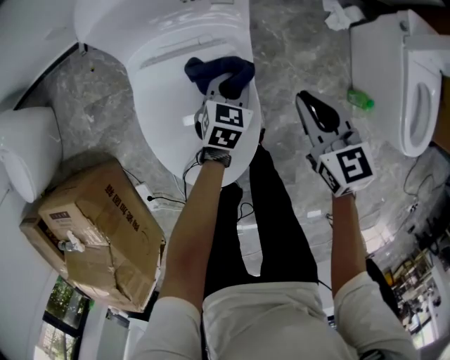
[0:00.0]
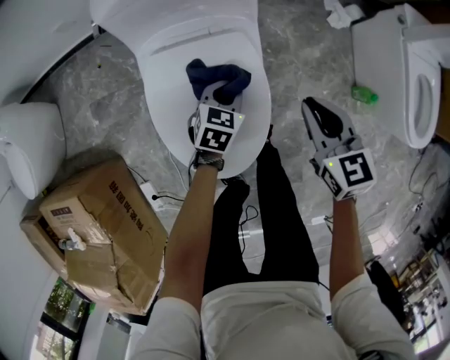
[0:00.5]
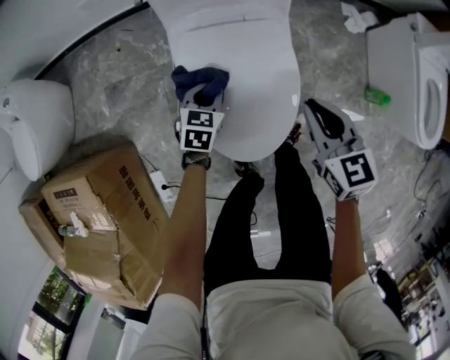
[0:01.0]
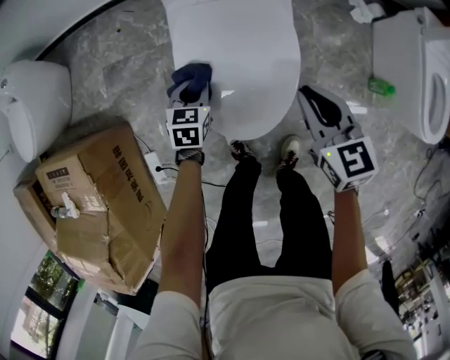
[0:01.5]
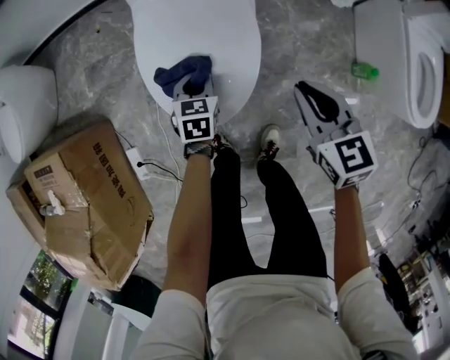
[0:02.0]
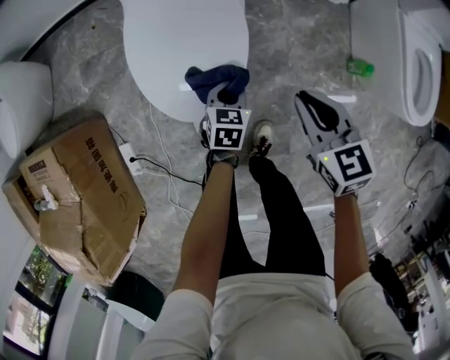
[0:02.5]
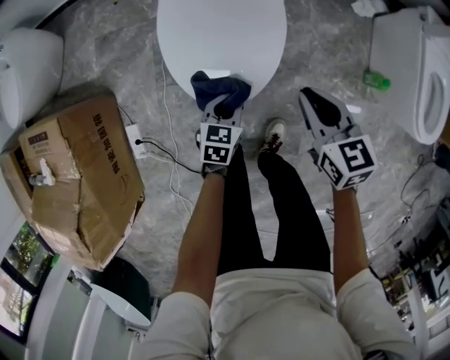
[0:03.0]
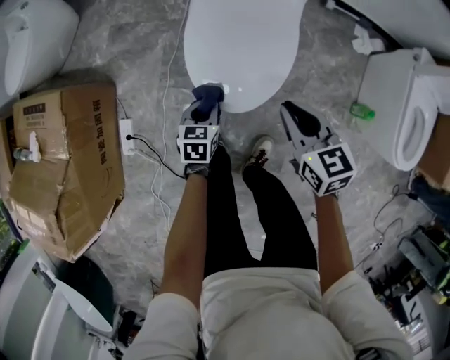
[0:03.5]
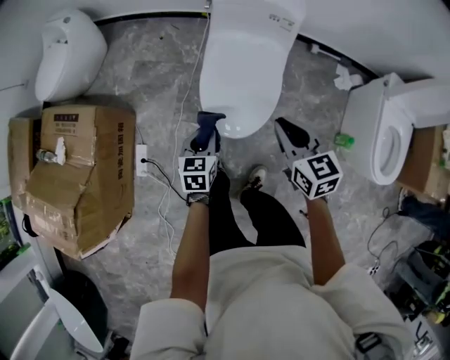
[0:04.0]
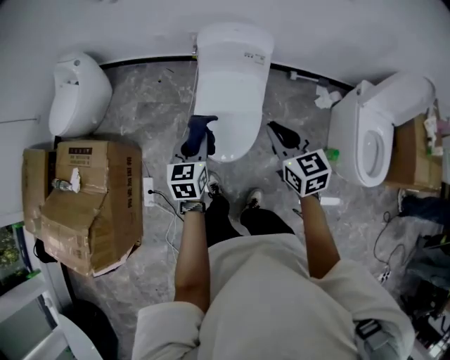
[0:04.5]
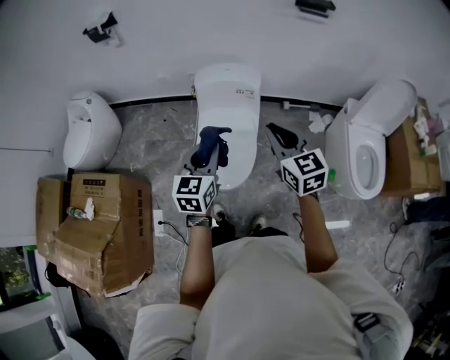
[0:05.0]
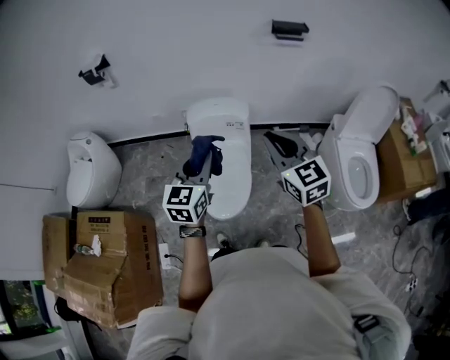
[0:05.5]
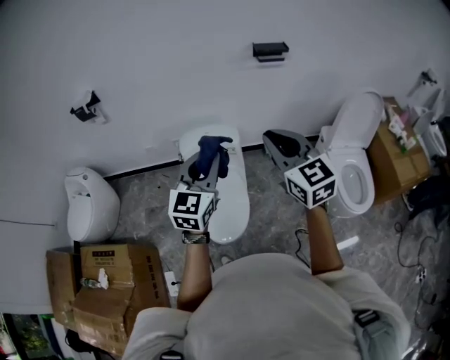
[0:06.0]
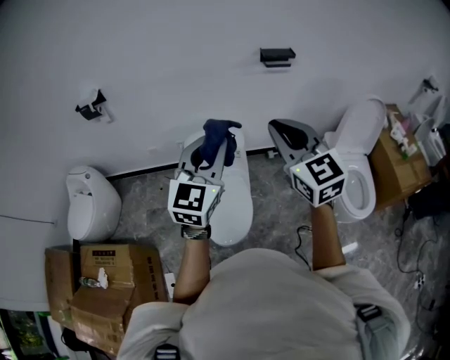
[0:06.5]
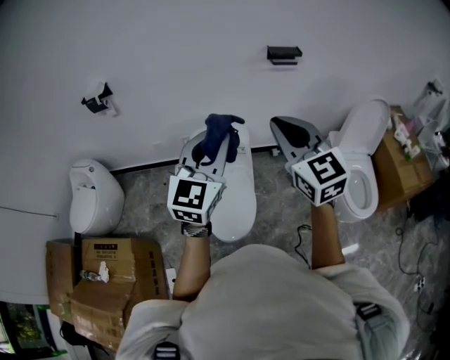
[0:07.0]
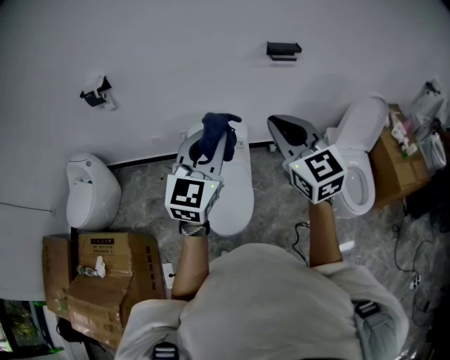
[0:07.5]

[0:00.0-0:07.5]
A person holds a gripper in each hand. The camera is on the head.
0:00.0 to 0:02.0: The right gripper travels backward by about 15 cm. Meanwhile the left gripper is displaced backward and to the left by about 20 cm, and turns by about 20 degrees.
0:02.0 to 0:04.0: The right gripper goes some 20 cm upward and to the left. The left gripper travels upward, backward and to the left by some 25 cm.
0:04.0 to 0:05.5: Both grippers travel together upward, roughly 35 cm. The right gripper swivels some 30 degrees; the left gripper angles its fingers upward, by roughly 30 degrees.
0:05.5 to 0:07.5: Both grippers move upward, roughly 15 cm. The left gripper rotates about 20 degrees.

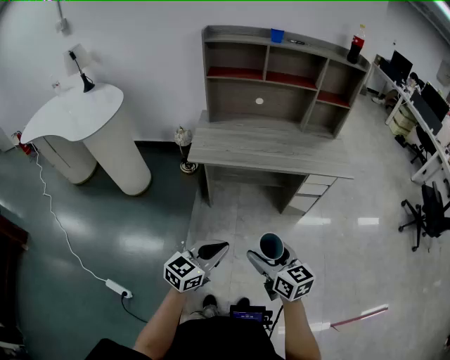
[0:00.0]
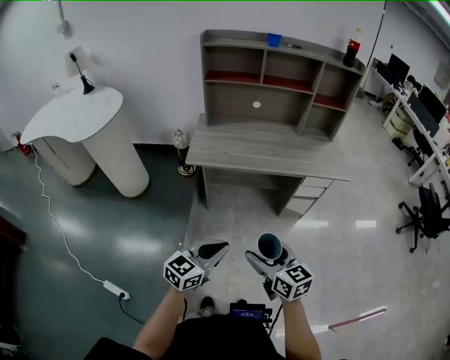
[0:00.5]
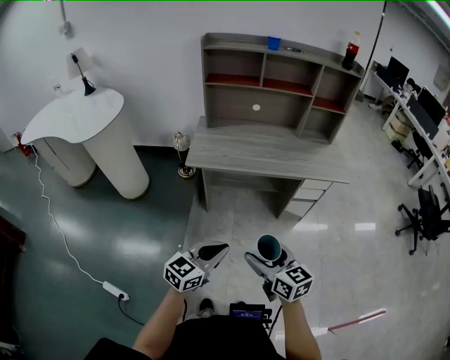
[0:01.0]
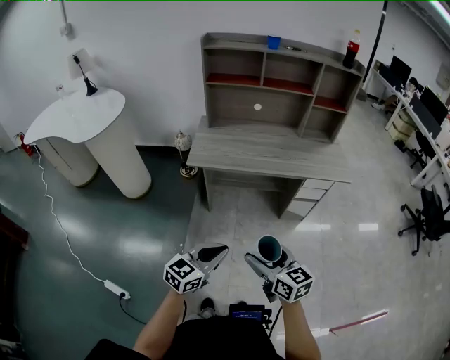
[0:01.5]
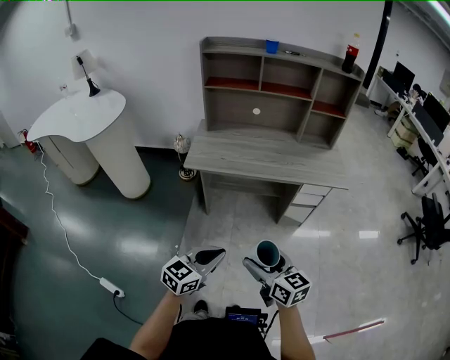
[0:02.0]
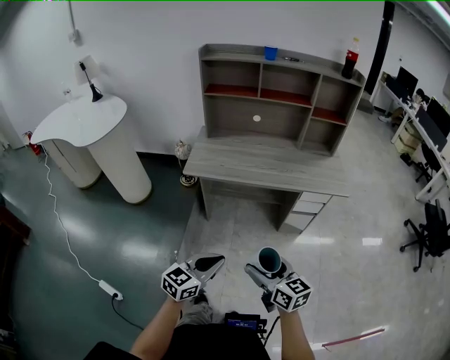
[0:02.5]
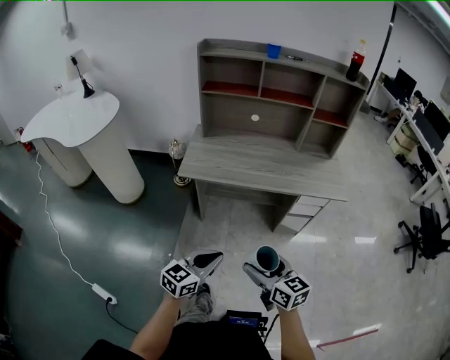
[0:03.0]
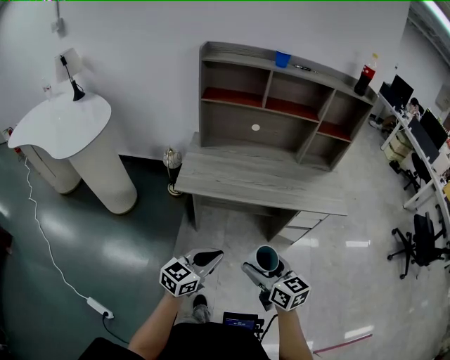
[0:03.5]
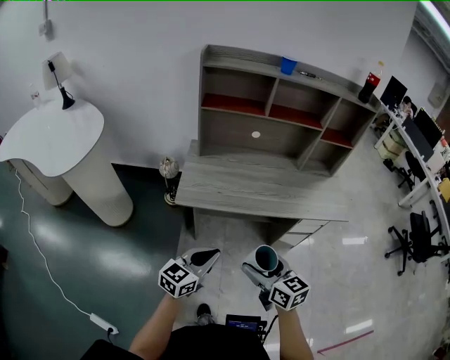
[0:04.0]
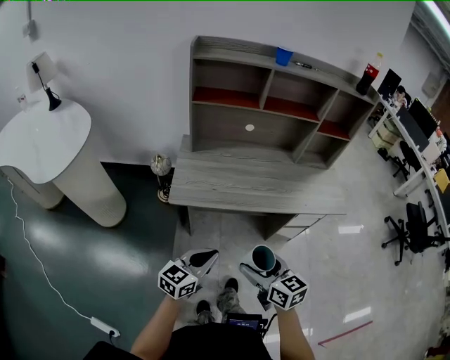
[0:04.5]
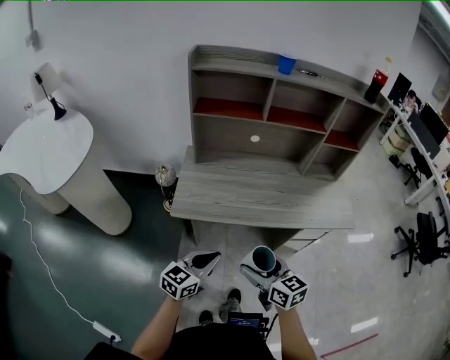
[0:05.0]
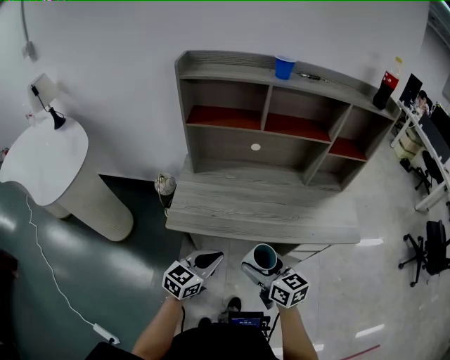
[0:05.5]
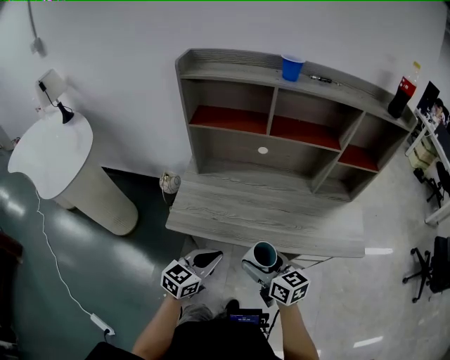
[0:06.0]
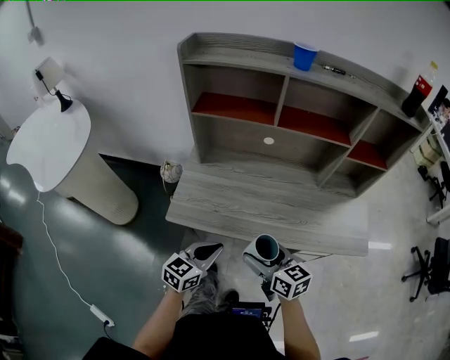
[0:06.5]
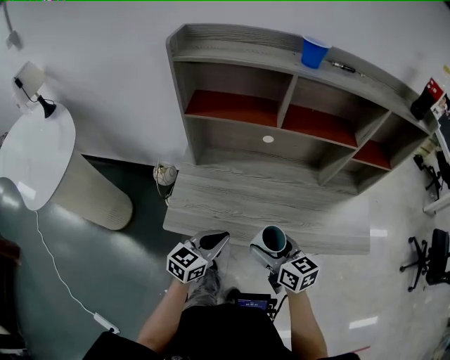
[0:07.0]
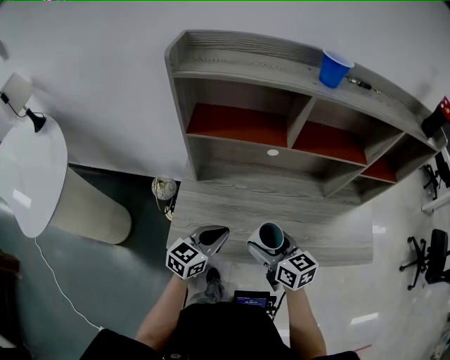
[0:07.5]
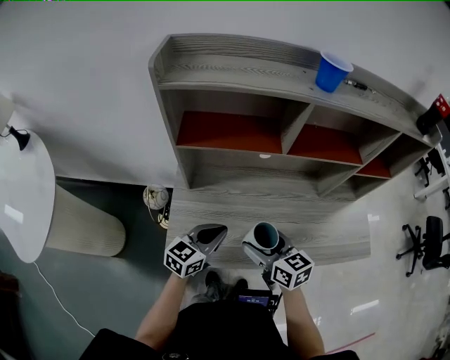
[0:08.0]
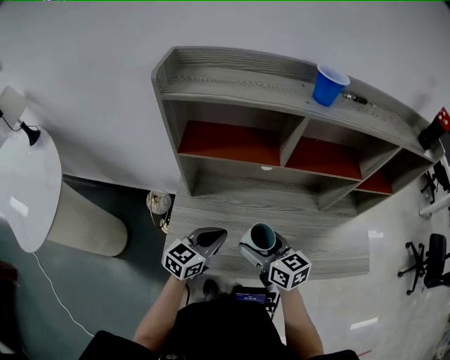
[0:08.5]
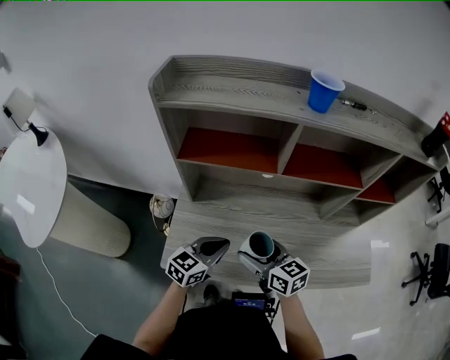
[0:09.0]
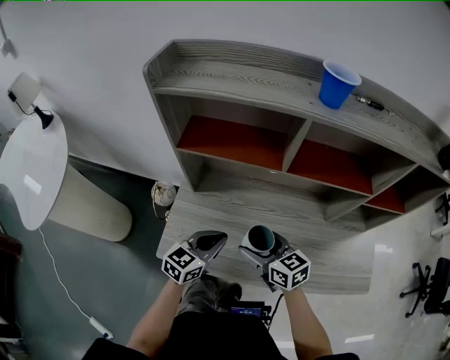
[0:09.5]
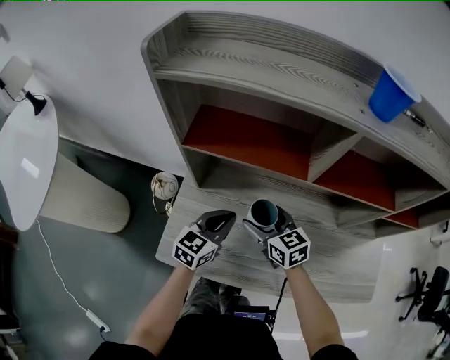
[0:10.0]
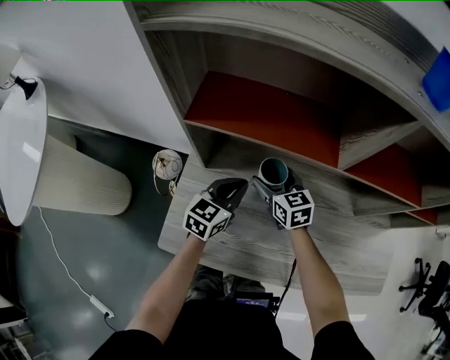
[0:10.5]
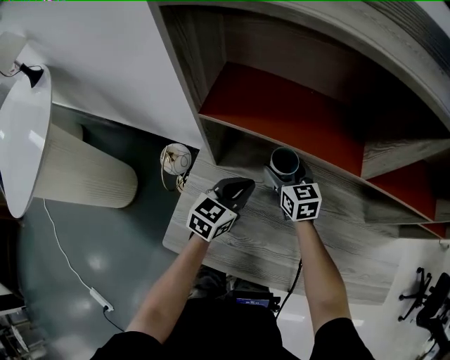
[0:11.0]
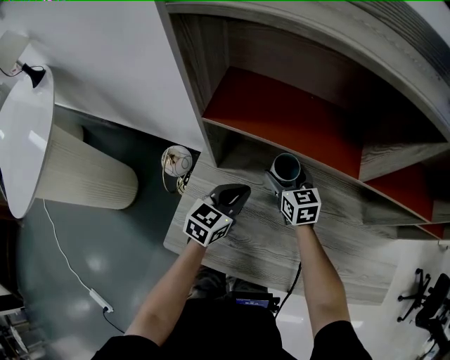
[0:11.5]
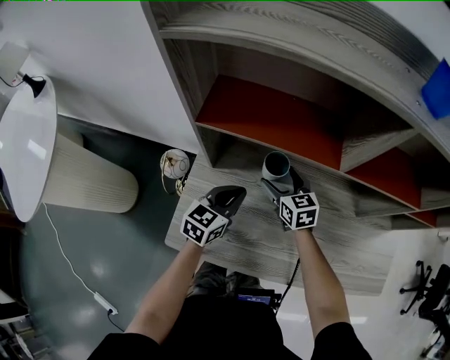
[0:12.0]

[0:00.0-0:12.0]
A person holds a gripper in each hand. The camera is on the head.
0:00.0 to 0:02.0: The grippers stay close to where they were, moving slightly.
0:02.0 to 0:04.0: Both grippers move forward and to the left, some 25 cm.
0:04.0 to 0:06.0: Both grippers travel together forward, approximately 20 cm.
0:06.0 to 0:08.0: Both grippers travel together forward, approximately 20 cm.
0:08.0 to 0:10.0: The right gripper travels forward and downward by roughly 15 cm, while the left gripper heads forward, covering approximately 10 cm.
0:10.0 to 0:12.0: The right gripper travels forward and downward by approximately 10 cm.

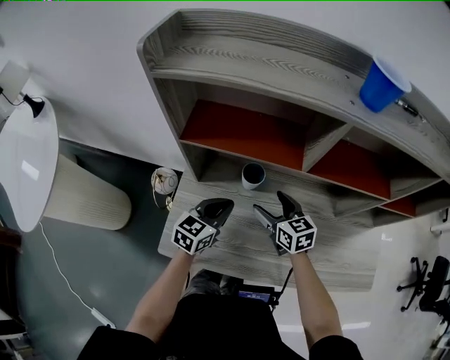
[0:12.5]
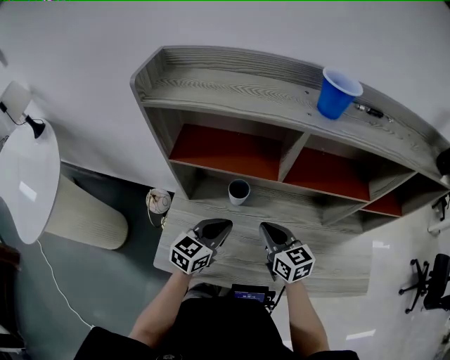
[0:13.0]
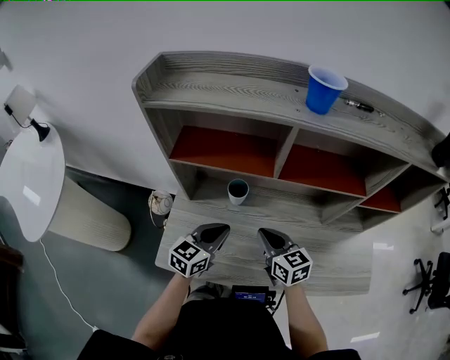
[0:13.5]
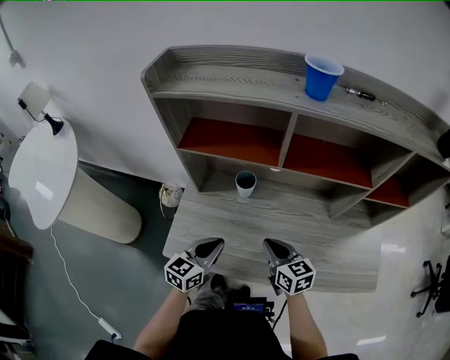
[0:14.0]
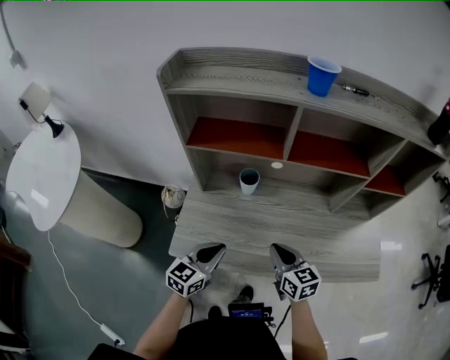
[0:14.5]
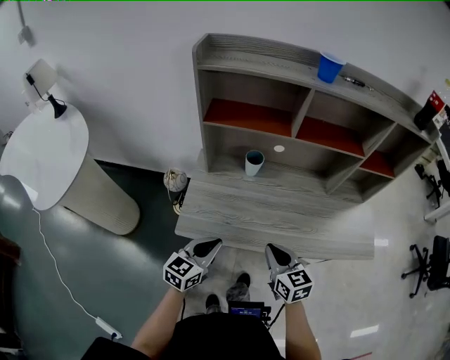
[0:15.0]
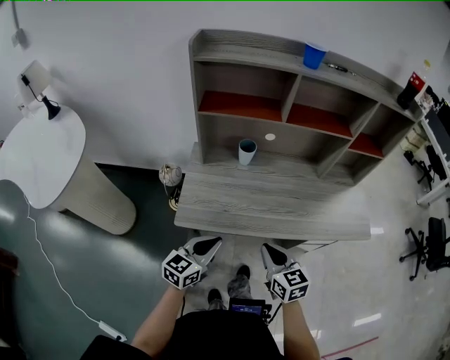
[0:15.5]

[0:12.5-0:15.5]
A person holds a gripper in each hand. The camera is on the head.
0:12.5 to 0:14.0: Both grippers move backward, some 15 cm. The right gripper closes up.
0:14.0 to 0:15.5: Both grippers travel together backward, about 20 cm.

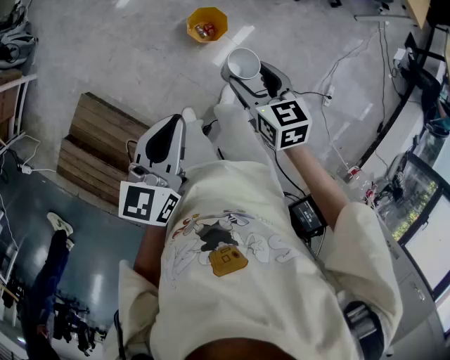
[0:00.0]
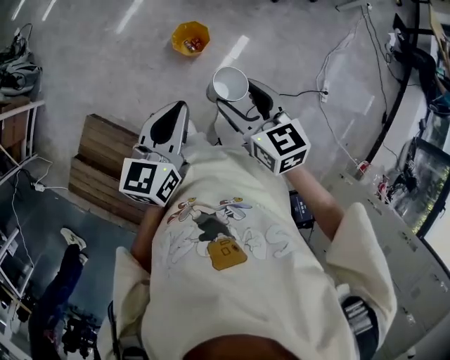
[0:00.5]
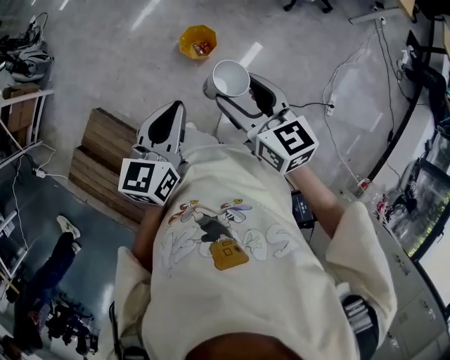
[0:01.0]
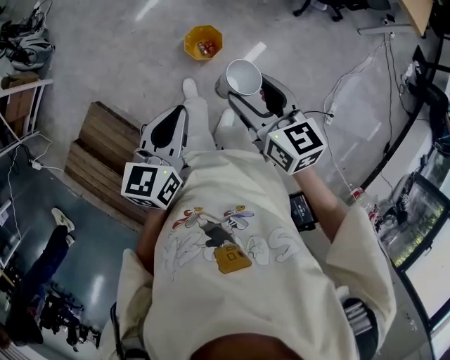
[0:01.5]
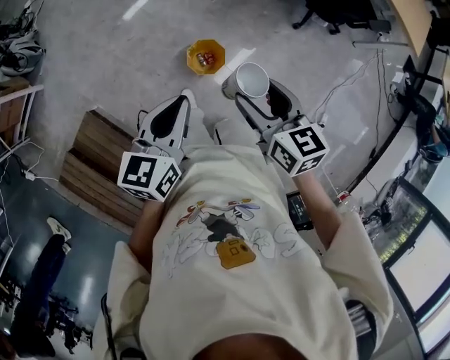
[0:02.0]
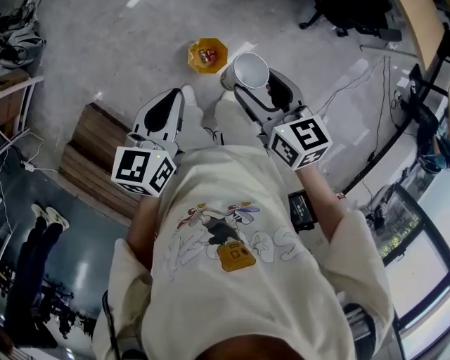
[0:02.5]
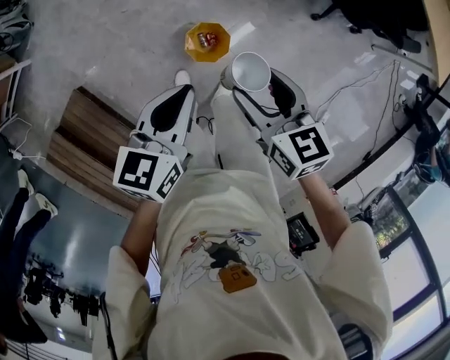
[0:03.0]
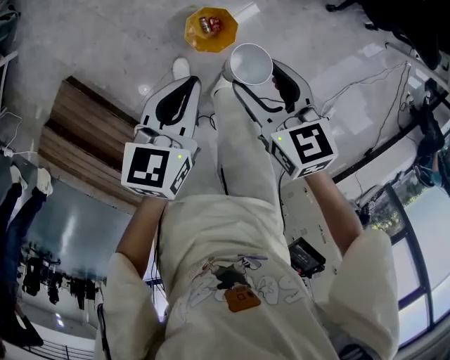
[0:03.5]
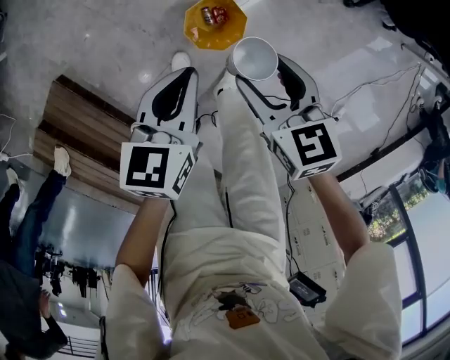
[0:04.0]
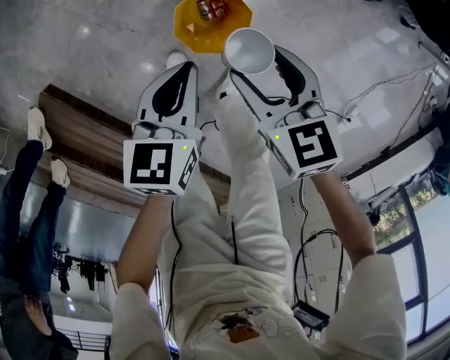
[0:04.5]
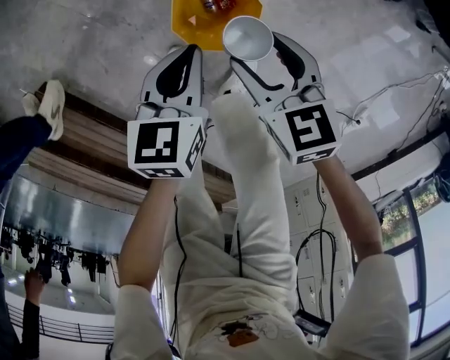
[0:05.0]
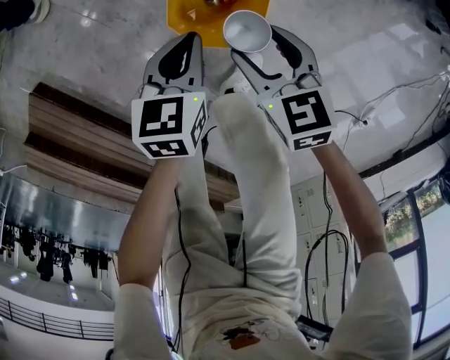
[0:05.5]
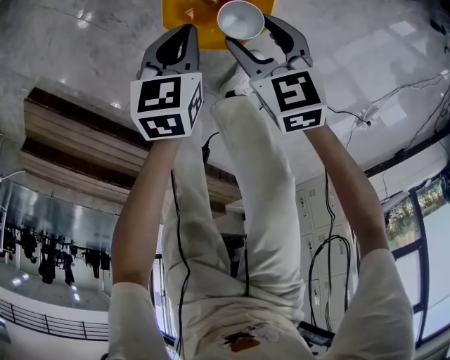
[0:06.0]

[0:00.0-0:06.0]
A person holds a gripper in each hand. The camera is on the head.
0:00.0 to 0:02.0: The right gripper is displaced forward and upward by about 15 cm, while the left gripper is displaced forward by approximately 15 cm.
0:02.0 to 0:04.0: Both grippers travel together downward and forward, about 40 cm. The left gripper rotates some 20 degrees. The right gripper turns by about 20 degrees.
0:04.0 to 0:06.0: Both grippers move downward, approximately 40 cm.
